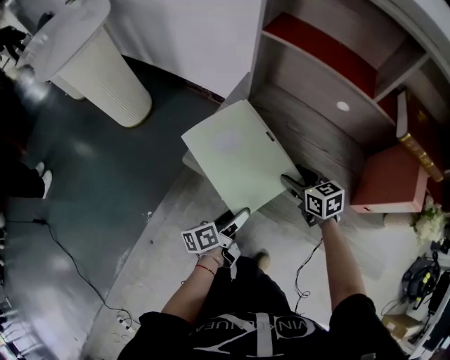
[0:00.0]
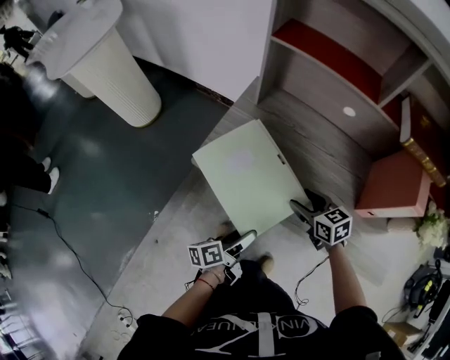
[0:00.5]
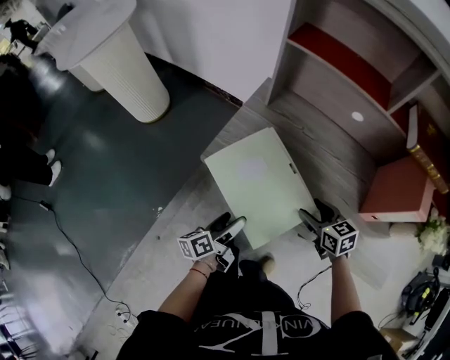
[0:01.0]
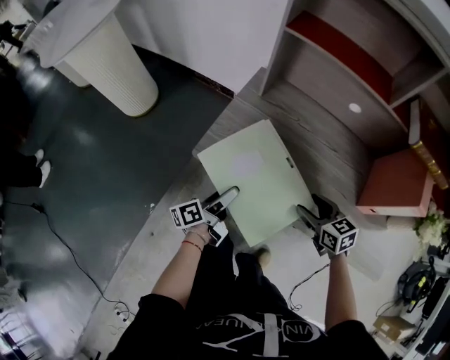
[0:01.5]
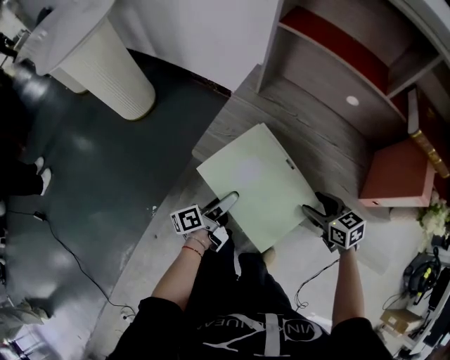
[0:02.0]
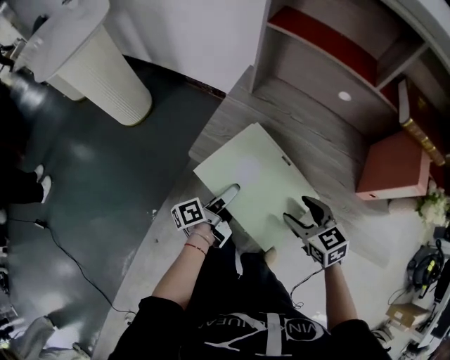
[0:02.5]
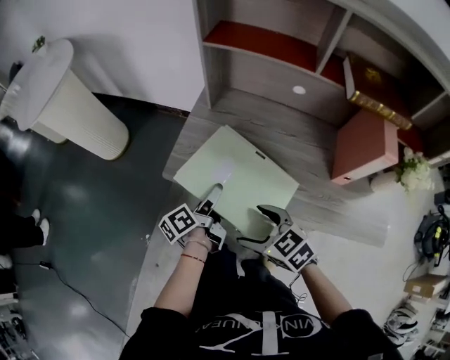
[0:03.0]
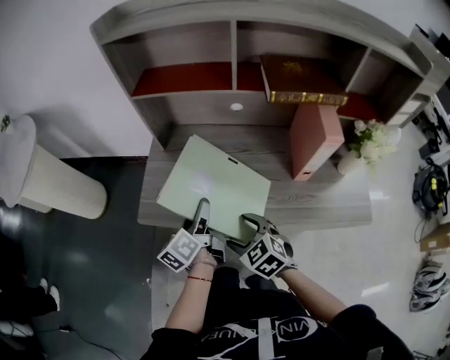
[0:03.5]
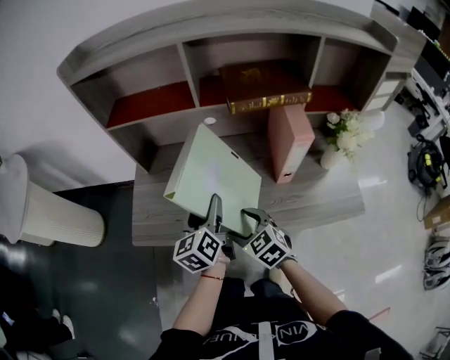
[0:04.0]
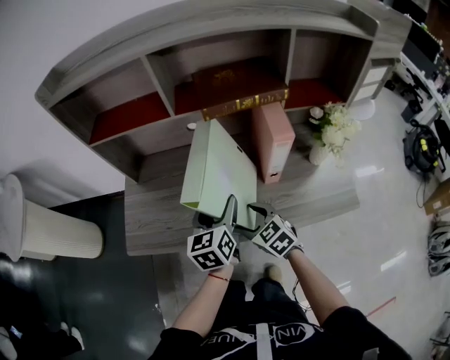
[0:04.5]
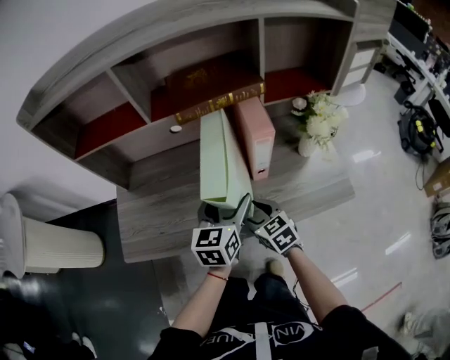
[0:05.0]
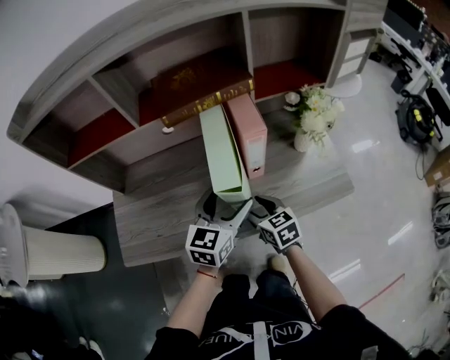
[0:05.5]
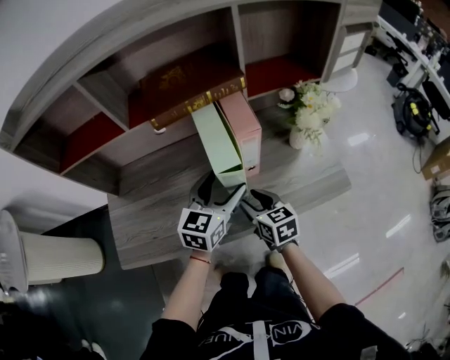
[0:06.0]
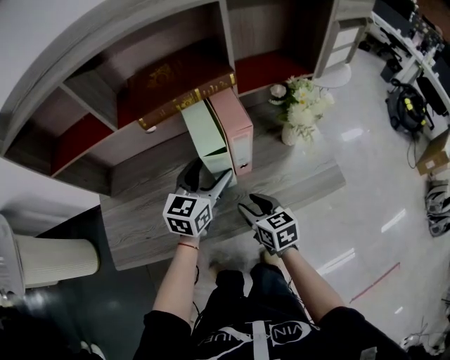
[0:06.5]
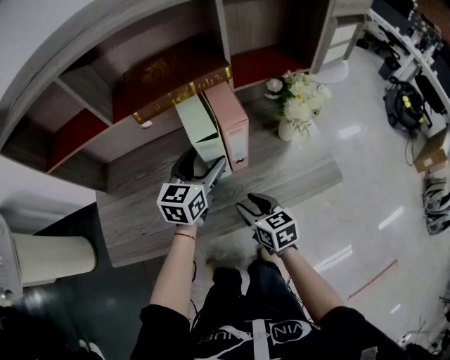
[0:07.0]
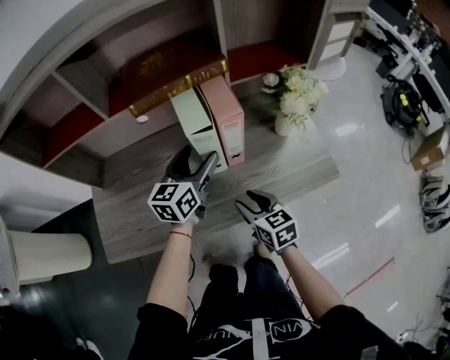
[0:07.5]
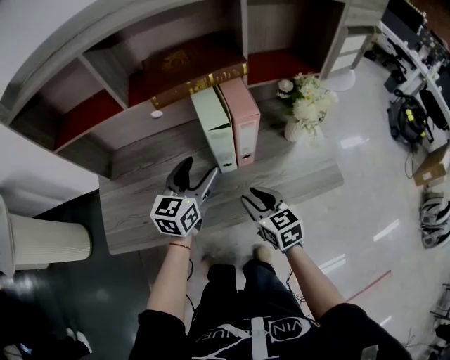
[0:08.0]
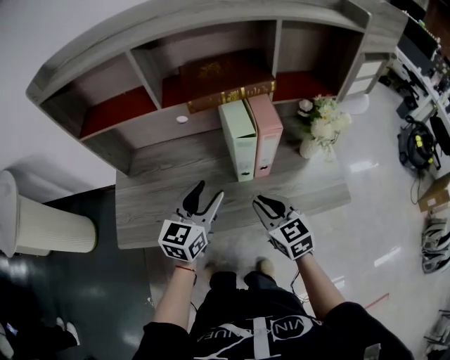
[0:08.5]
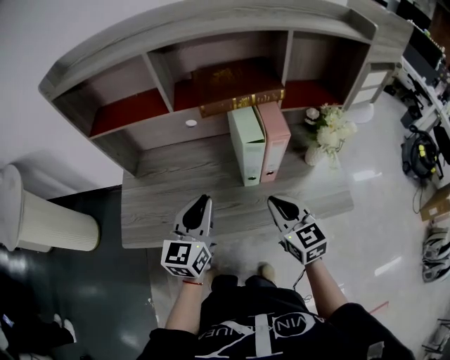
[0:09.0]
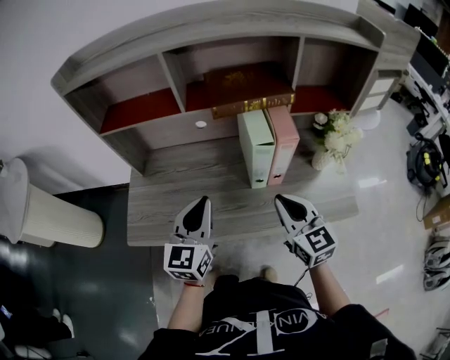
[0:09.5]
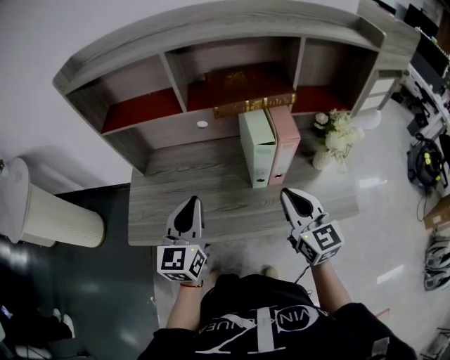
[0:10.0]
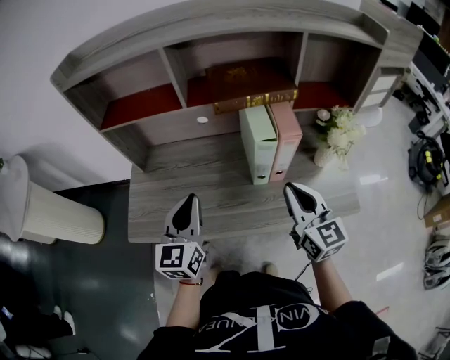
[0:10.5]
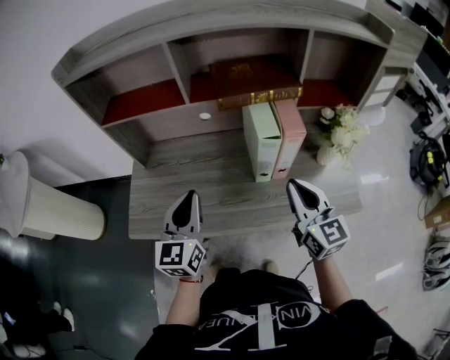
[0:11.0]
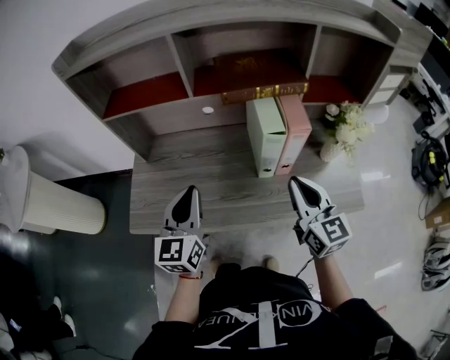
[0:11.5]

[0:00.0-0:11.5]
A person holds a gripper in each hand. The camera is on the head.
0:00.0 to 0:02.0: The left gripper shifts about 5 cm to the left, and reaches roughly 5 cm backward, then returns, while the right gripper shifts some 10 cm backward.
0:02.0 to 0:04.0: The right gripper moves upward, roughly 5 cm, travels to the left and back again, approximately 10 cm each way, and turns by about 20 degrees. Meanwhile the left gripper moves to the right and upward, about 30 cm, and rotates around the line of its fingers by roughly 40 degrees, clockwise from behind.
0:04.0 to 0:06.0: The right gripper moves about 20 cm, swivels about 40 degrees, and closes up. The left gripper moves about 20 cm, and changes its angle by some 50 degrees.
0:06.0 to 0:07.5: The right gripper changes place by some 5 cm, while the left gripper changes place by some 5 cm.
0:07.5 to 0:09.5: The right gripper is displaced upward by some 15 cm, swivels about 30 degrees, and closes up, while the left gripper is displaced to the left, backward and upward by roughly 20 cm, rotates approximately 20 degrees, and closes its fingers.
0:09.5 to 0:11.5: The left gripper goes about 5 cm to the left.

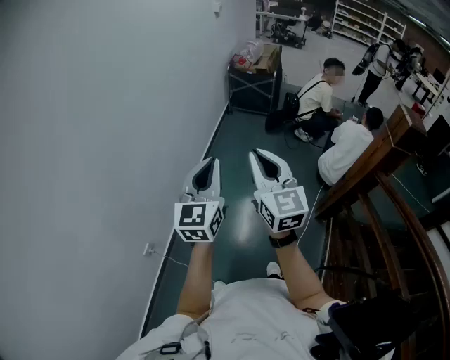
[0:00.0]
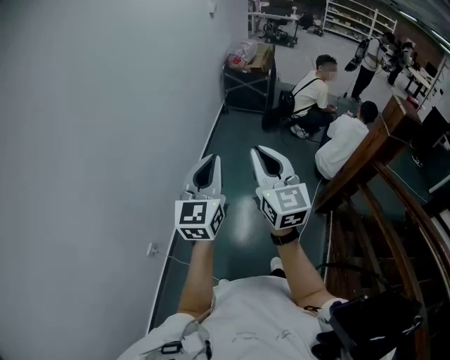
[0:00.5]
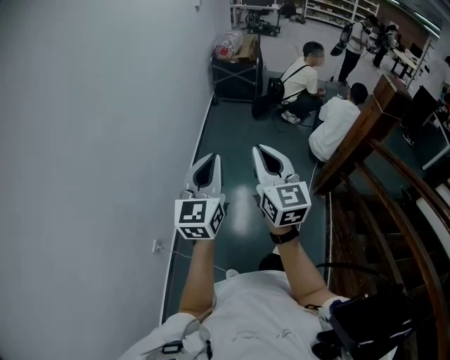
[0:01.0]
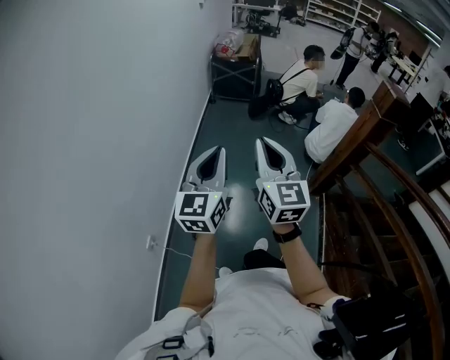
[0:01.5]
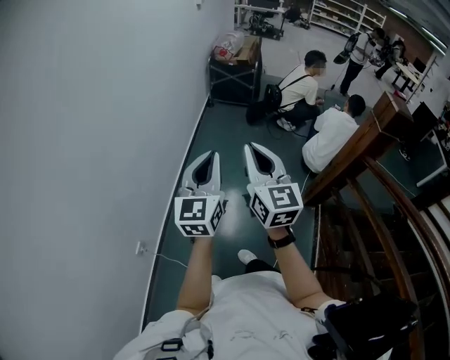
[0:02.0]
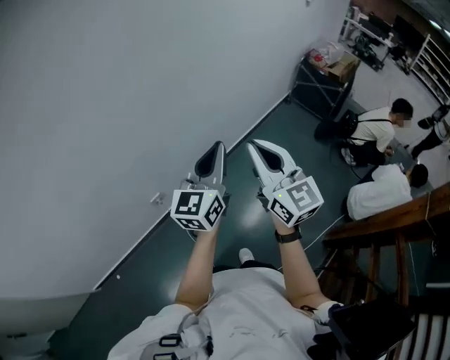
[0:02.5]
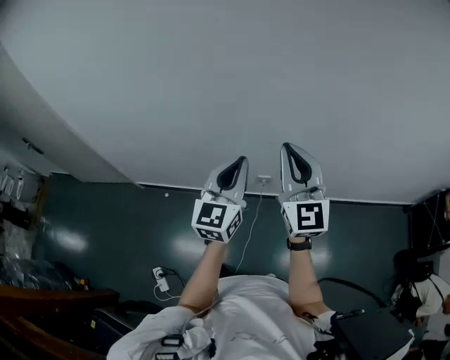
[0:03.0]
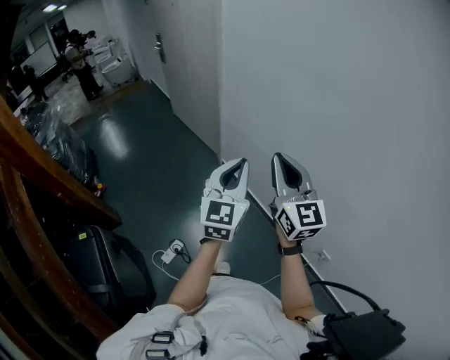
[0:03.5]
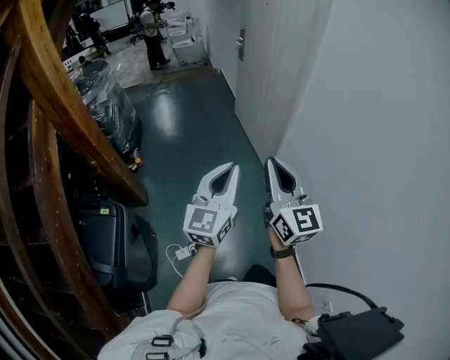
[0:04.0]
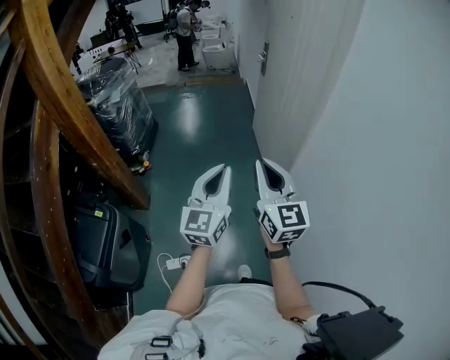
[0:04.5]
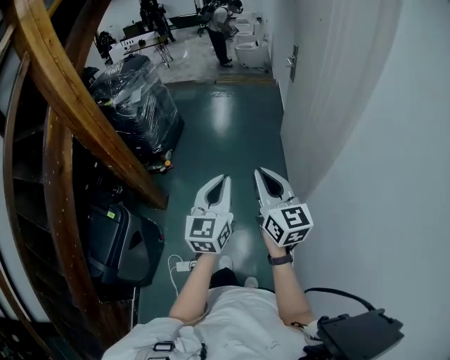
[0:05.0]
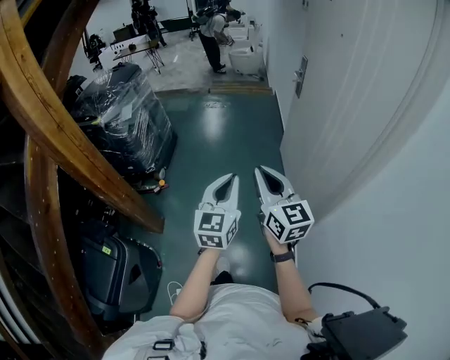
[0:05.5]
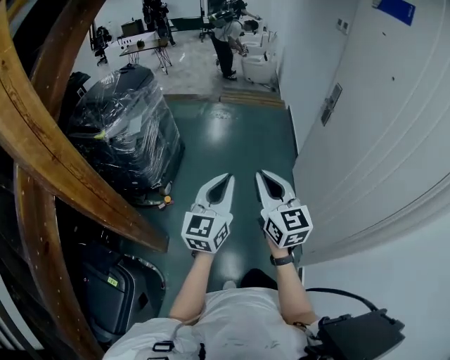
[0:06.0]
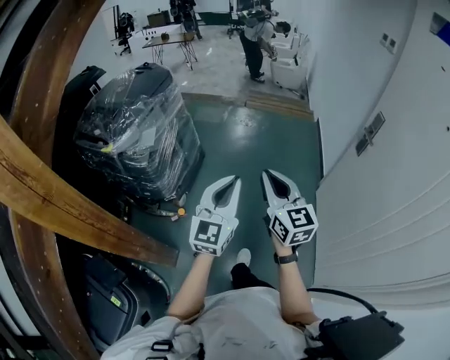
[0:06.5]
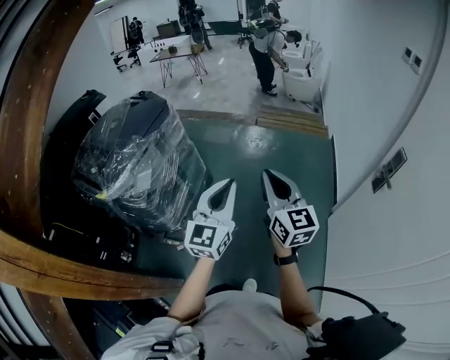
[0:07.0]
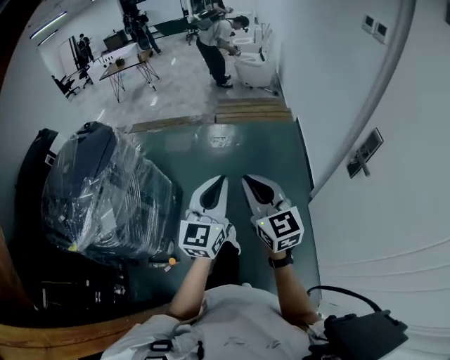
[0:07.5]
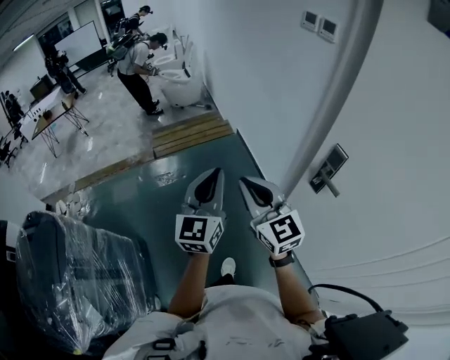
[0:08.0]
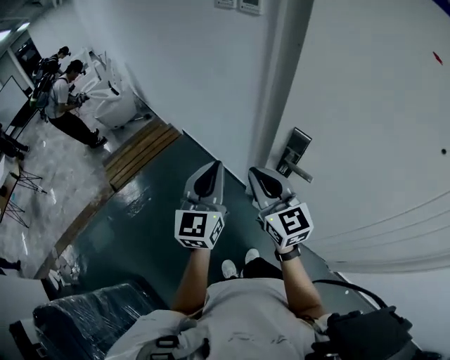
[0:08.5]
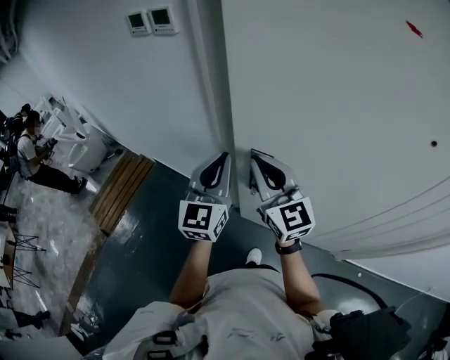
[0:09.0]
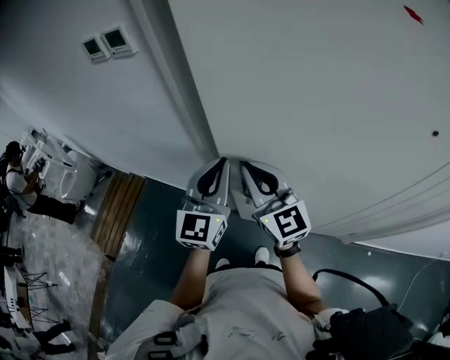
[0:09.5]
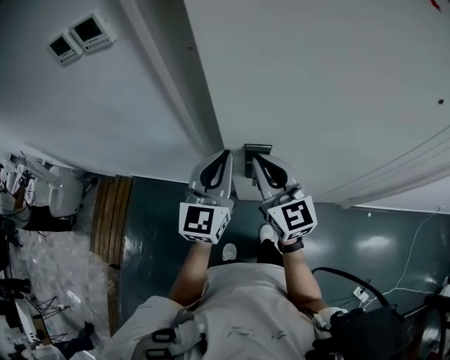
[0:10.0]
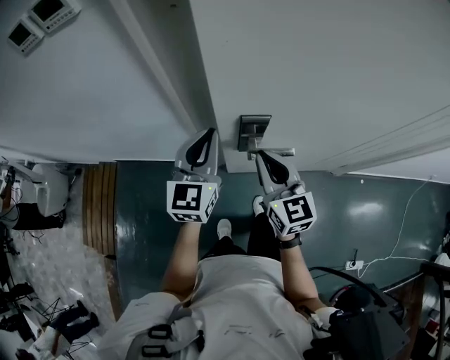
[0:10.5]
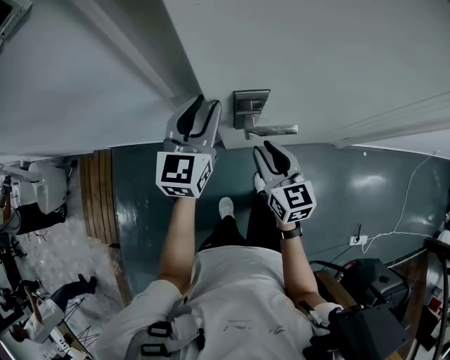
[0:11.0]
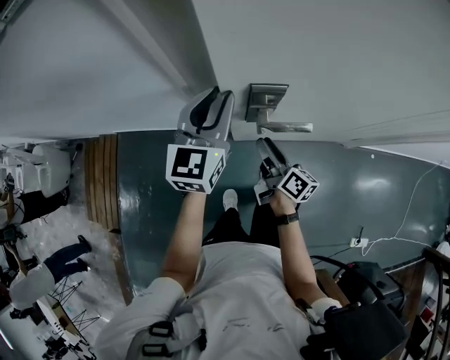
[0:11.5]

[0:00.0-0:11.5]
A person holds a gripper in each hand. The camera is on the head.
0:02.0 to 0:04.0: The pair of grippers is taken about 1 m. The left gripper rotates about 140 degrees. Meanwhile the right gripper turns by some 150 degrees.
0:04.0 to 0:06.0: The pair of grippers is taken forward, some 60 cm. The right gripper changes its angle by roughly 30 degrees. Meanwhile the left gripper swivels about 20 degrees.
0:06.0 to 0:07.5: The pair of grippers is taken forward, approximately 50 cm.
0:07.5 to 0:09.5: The pair of grippers is taken some 60 cm. The right gripper swivels about 70 degrees; the left gripper changes its angle by some 70 degrees.
0:09.5 to 0:11.5: The right gripper shifts some 30 cm downward, rolls clockwise, seen from behind, by about 70 degrees, and opens, while the left gripper is displaced downward by roughly 15 cm, changes its angle by roughly 20 degrees, and opens its fingers.

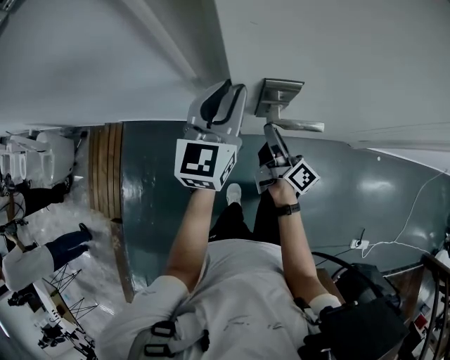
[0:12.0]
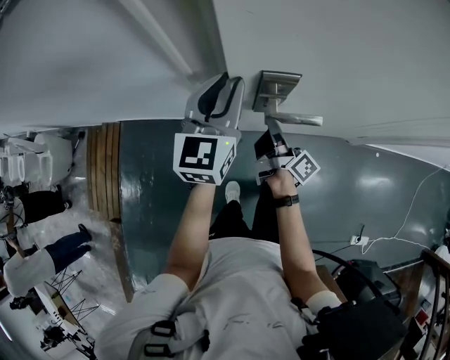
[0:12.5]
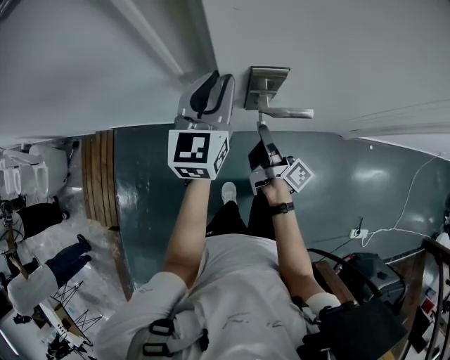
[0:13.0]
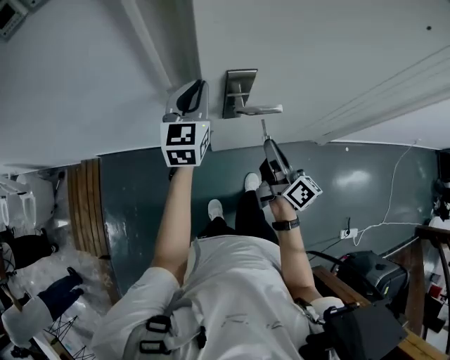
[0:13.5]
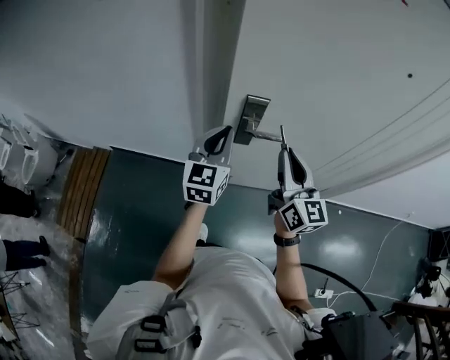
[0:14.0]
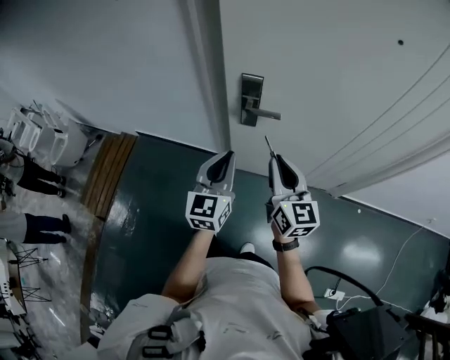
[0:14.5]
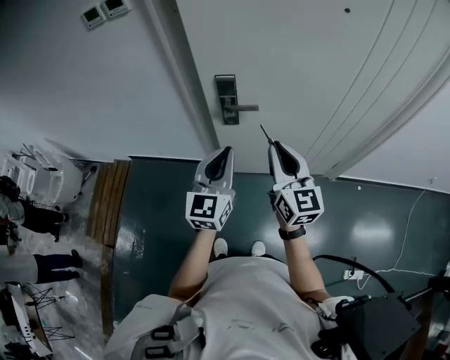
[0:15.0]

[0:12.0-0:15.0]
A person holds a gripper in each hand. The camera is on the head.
0:12.0 to 0:13.5: The right gripper is displaced upward, backward and to the right by about 15 cm, and closes its fingers.
0:13.5 to 0:15.0: The right gripper goes up and down, about 15 cm each way, reversing 2 times, and rotates around the line of its fingers by some 50 degrees, counterclockwise from behind. Meanwhile the left gripper goes roughly 30 cm backward.
